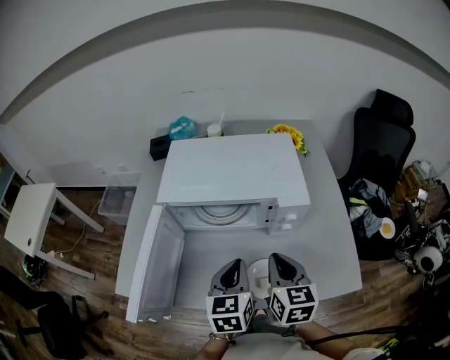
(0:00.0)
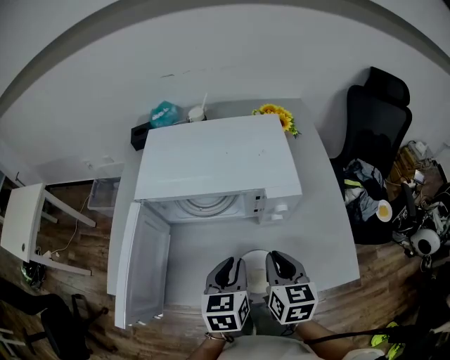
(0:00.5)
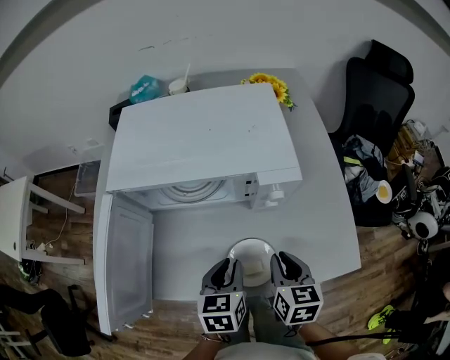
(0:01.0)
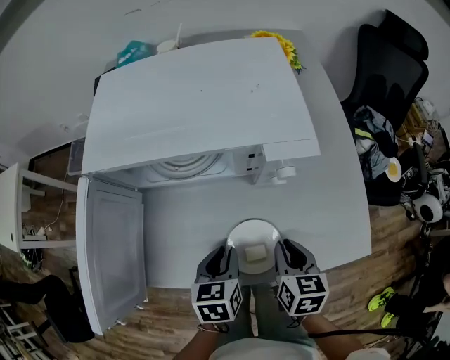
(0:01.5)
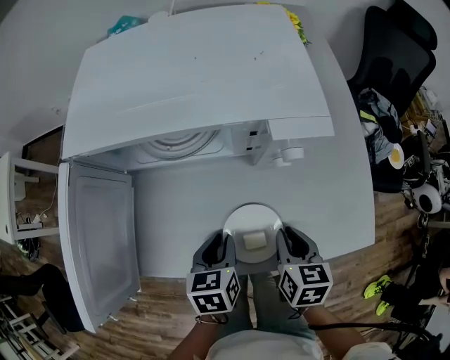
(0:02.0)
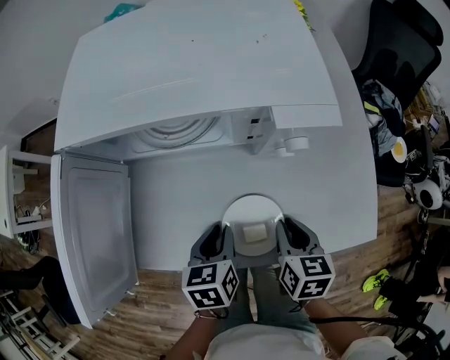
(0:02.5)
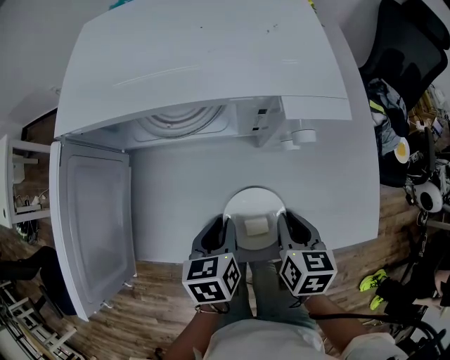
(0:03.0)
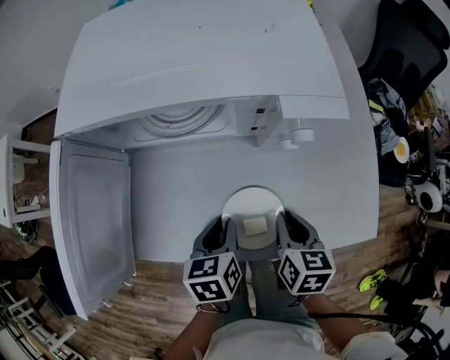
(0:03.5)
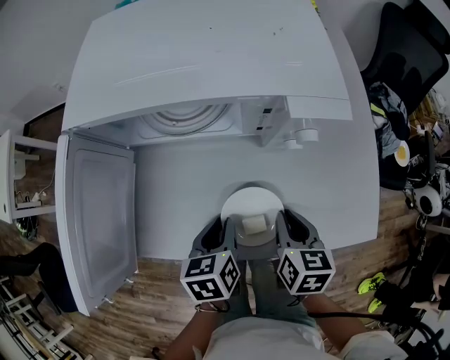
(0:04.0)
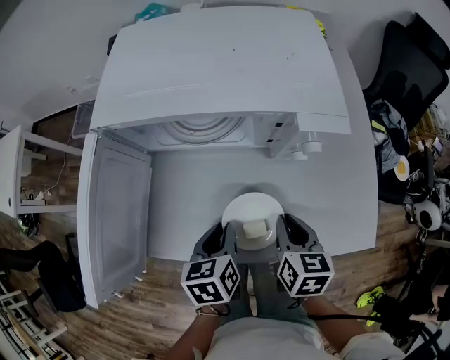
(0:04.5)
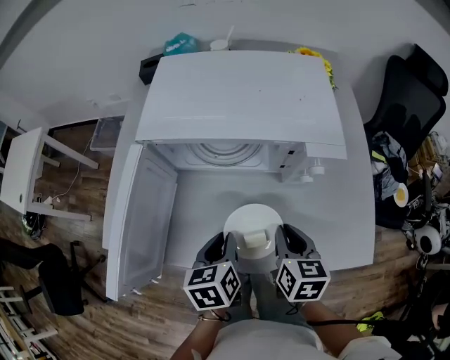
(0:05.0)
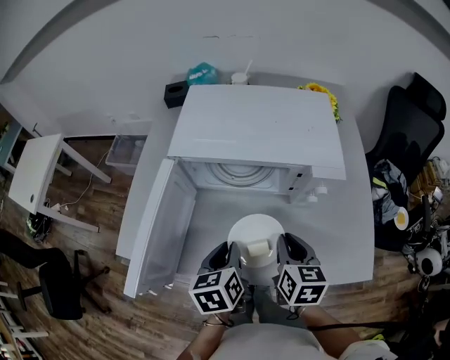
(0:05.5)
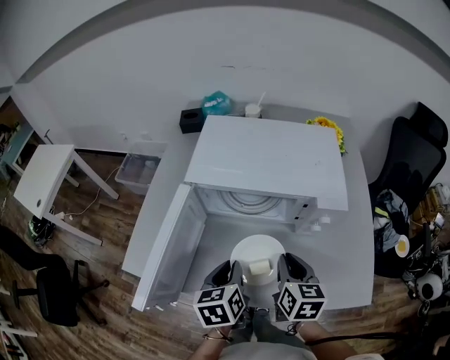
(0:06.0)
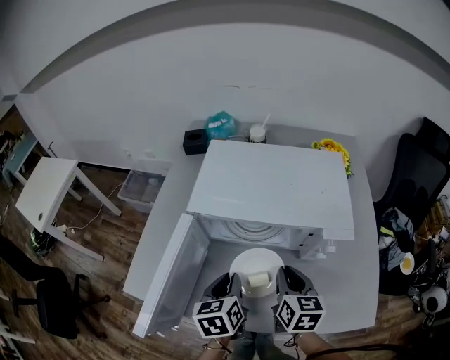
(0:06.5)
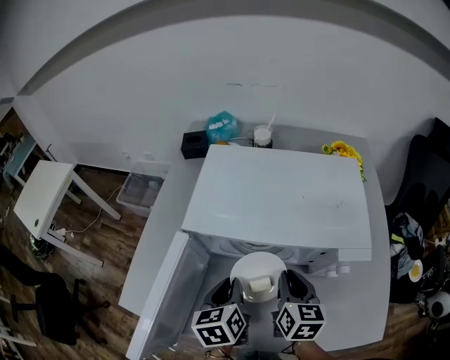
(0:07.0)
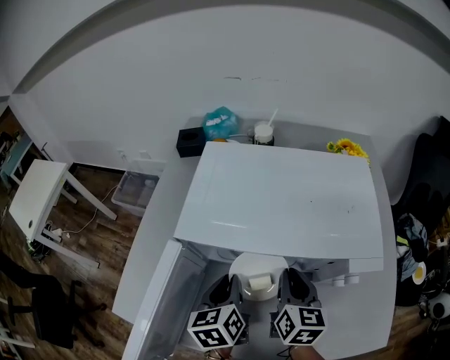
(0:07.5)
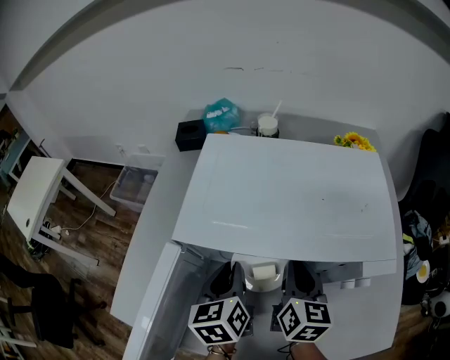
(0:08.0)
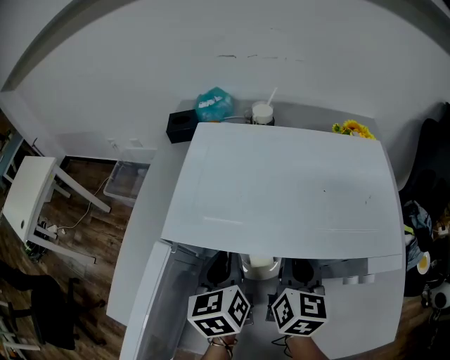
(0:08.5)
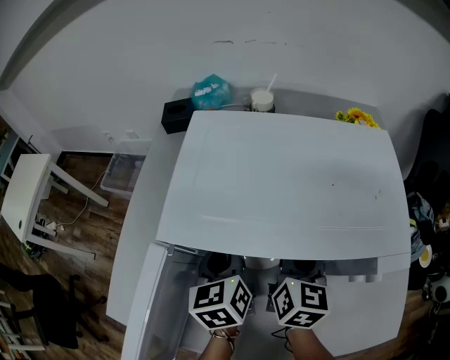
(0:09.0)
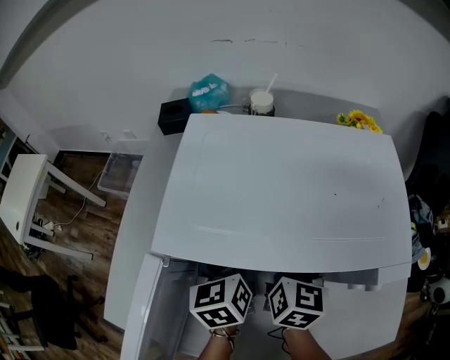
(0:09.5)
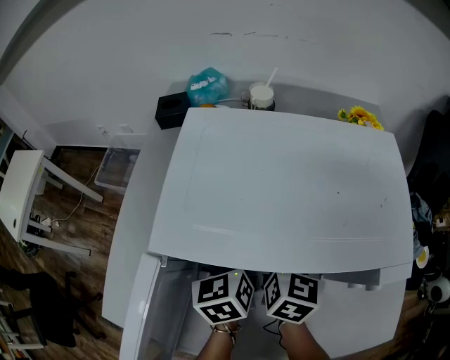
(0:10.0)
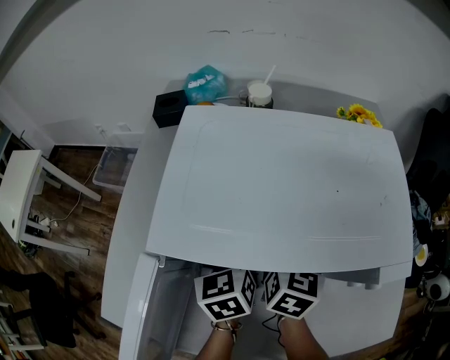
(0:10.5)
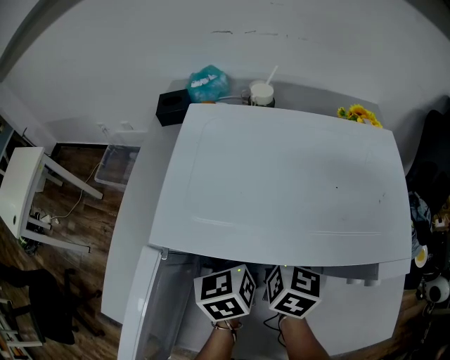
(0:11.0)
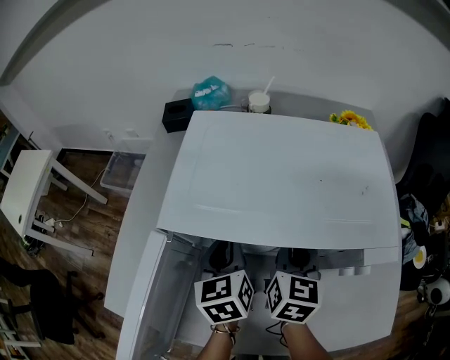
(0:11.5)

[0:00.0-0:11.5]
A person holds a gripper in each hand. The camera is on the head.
0:00.0 to 0:02.0: The left gripper moves downward, roughly 20 cm, and changes its angle by about 30 degrees. The right gripper heads downward and to the right, covering approximately 20 cm, and rotates about 30 degrees.
0:02.0 to 0:04.0: There are only small adjustments of the grippers.
0:04.0 to 0:06.0: Both grippers travel together upward and to the left, approximately 15 cm.
0:06.0 to 0:07.5: The two grippers go roughly 15 cm forward.
0:07.5 to 0:09.5: The two grippers go some 10 cm forward.
0:09.5 to 0:11.5: There are only small adjustments of the grippers.

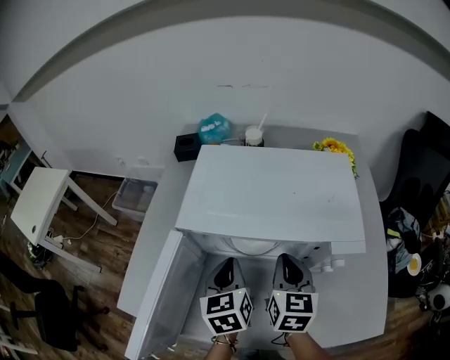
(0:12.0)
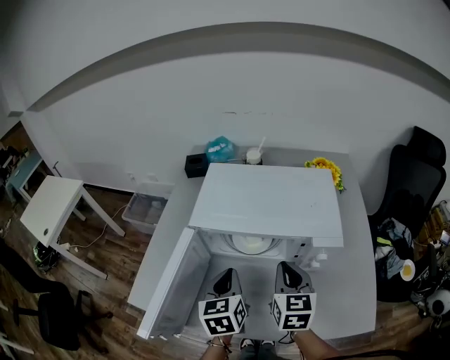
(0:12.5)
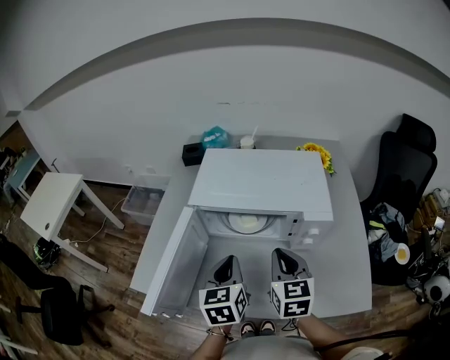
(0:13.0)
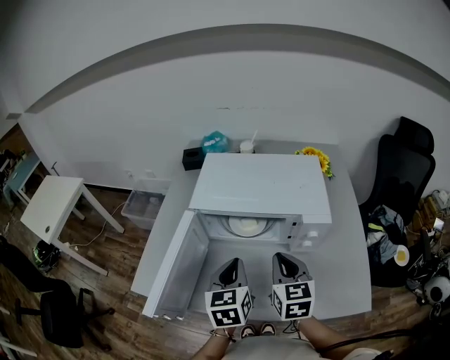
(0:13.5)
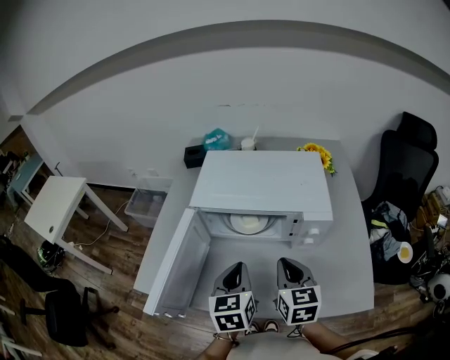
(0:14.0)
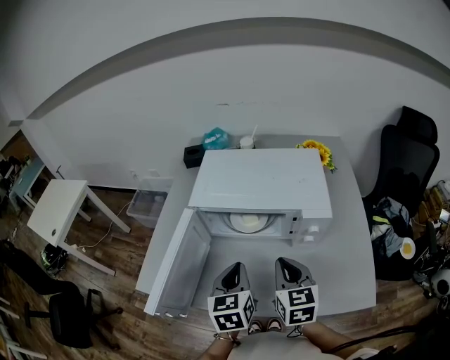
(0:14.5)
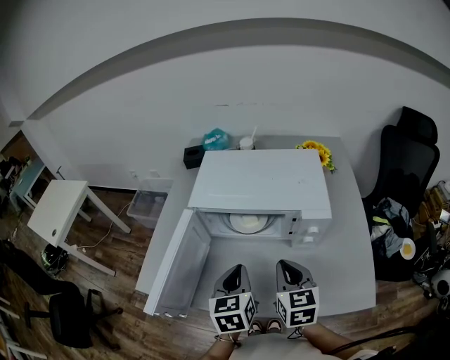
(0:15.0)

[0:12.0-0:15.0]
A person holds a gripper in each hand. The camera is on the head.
0:12.0 to 0:13.5: Both grippers move backward and upward, roughly 15 cm.
0:13.5 to 0:15.0: The grippers stay close to where they were, moving slightly.

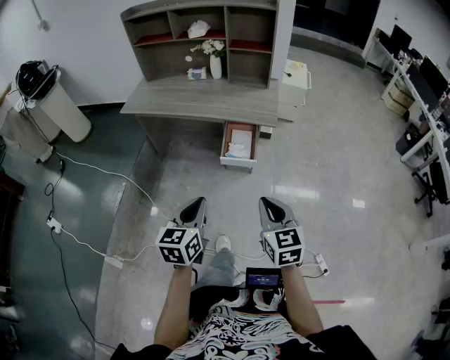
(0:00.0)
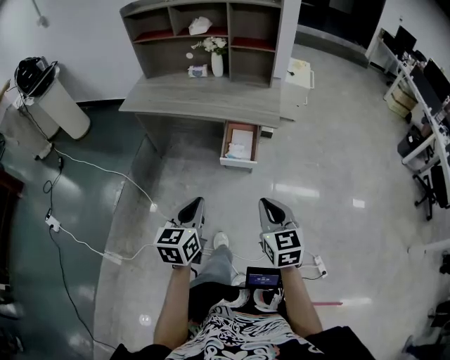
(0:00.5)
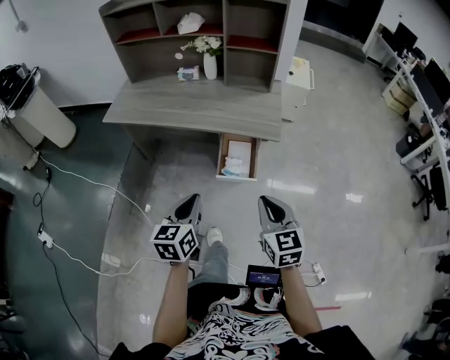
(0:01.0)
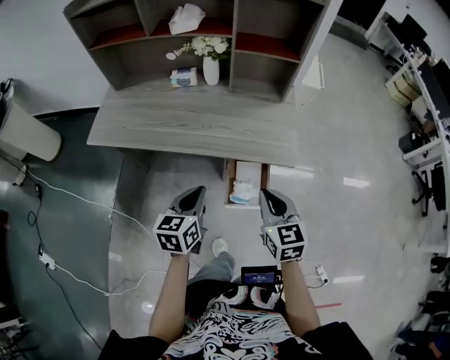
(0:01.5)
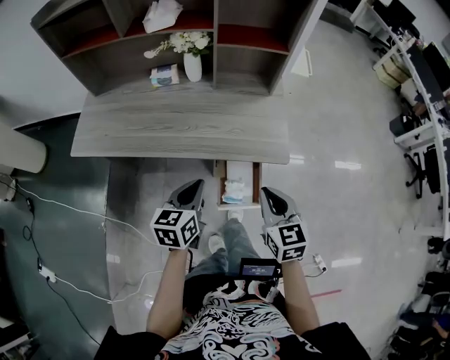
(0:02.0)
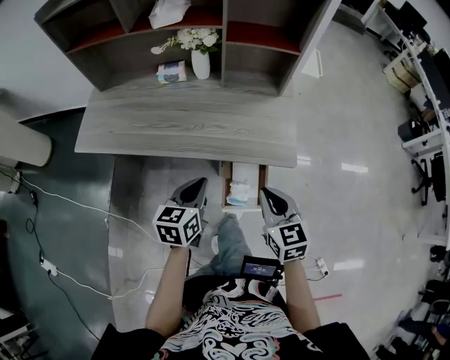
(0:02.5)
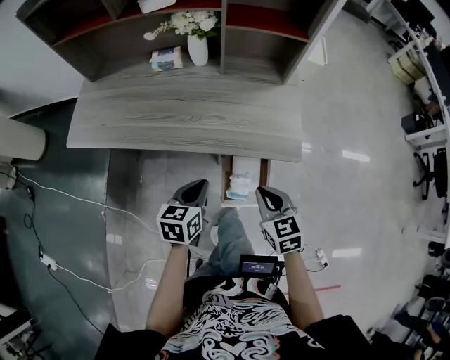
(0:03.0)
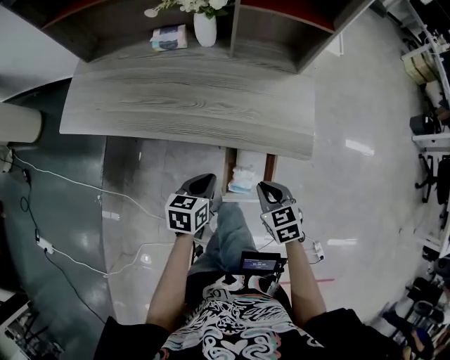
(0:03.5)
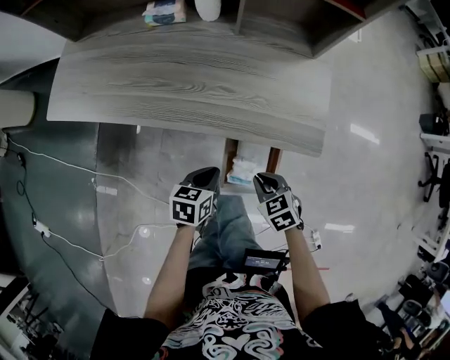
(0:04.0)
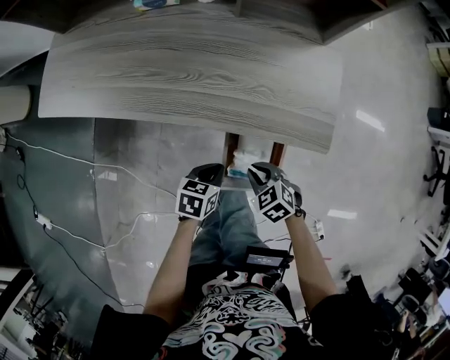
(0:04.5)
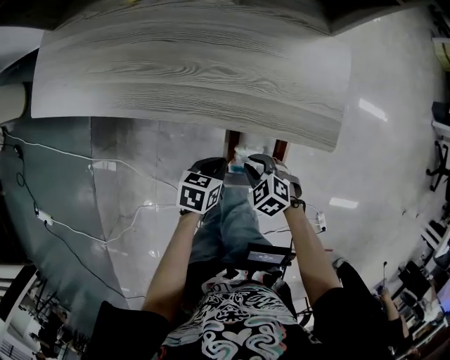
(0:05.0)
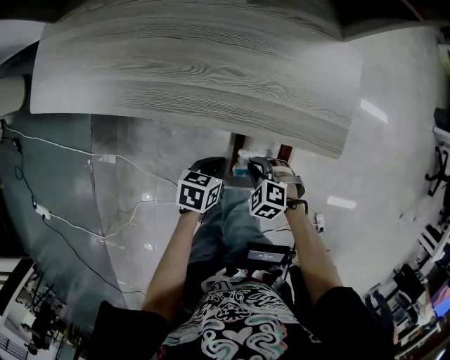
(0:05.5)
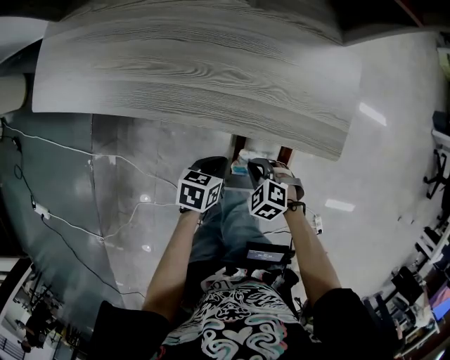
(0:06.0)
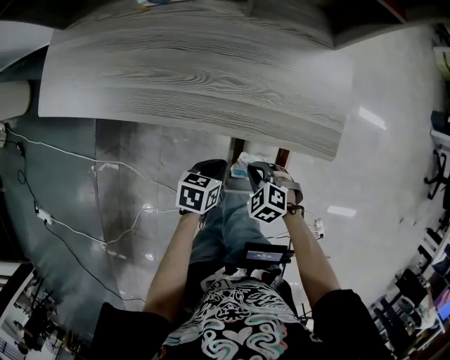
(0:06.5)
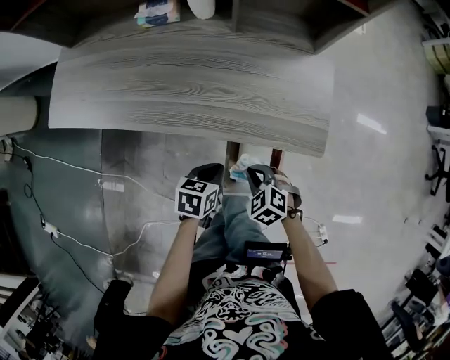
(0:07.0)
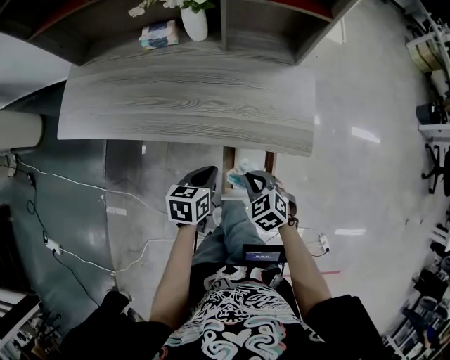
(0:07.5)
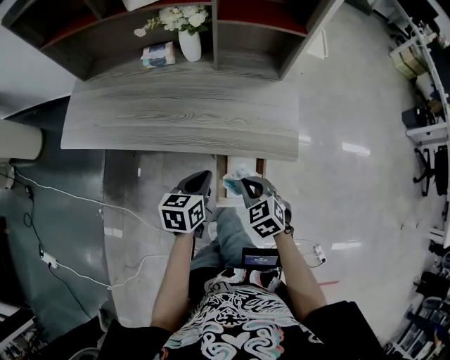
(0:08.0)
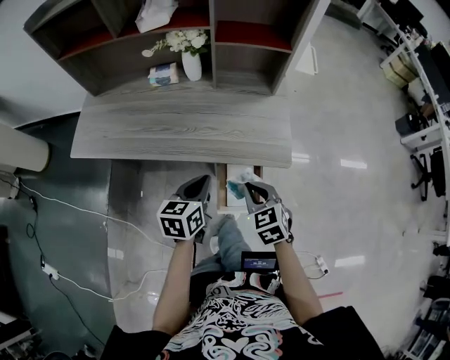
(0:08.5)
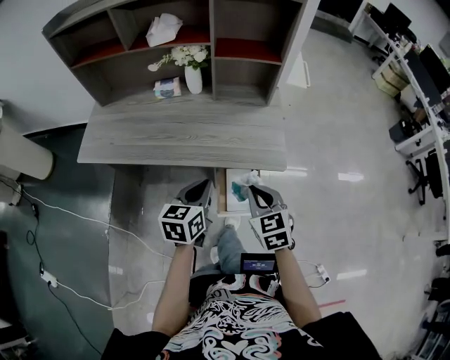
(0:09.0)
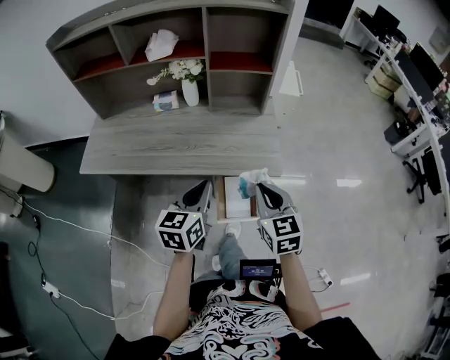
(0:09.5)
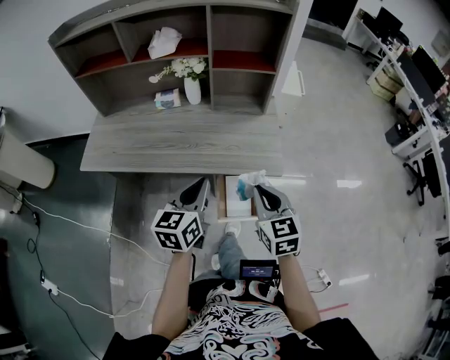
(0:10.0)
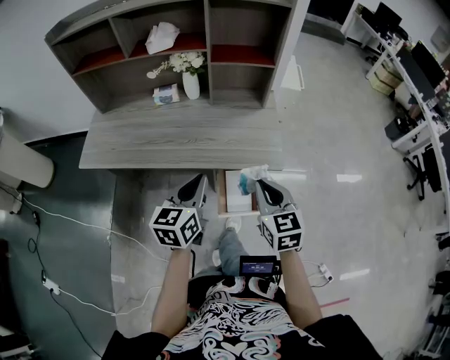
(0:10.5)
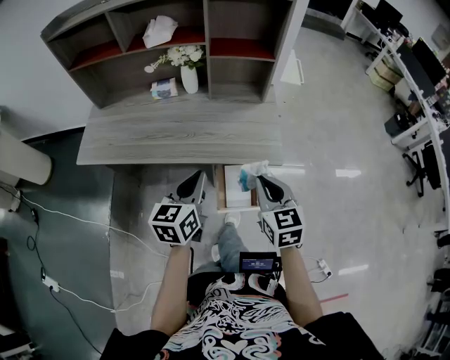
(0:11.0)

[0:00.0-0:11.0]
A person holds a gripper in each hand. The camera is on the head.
0:00.0 to 0:02.0: Both grippers travel together forward, approximately 35 cm.
0:02.0 to 0:03.5: Both grippers travel together downward, some 15 cm. The right gripper turns by about 30 degrees.
0:03.5 to 0:05.5: The grippers both shift downward by some 15 cm. The right gripper twists approximately 40 degrees counterclockwise, seen from behind.
0:05.5 to 0:07.5: The right gripper is displaced upward by approximately 10 cm, and changes its angle by approximately 30 degrees; the left gripper shifts some 10 cm upward and forward.
0:07.5 to 0:09.0: The two grippers go roughly 15 cm upward. The right gripper rotates about 30 degrees. Meanwhile the left gripper rotates about 20 degrees.
0:09.0 to 0:11.0: The right gripper shifts by approximately 5 cm, while the left gripper shifts roughly 5 cm upward.

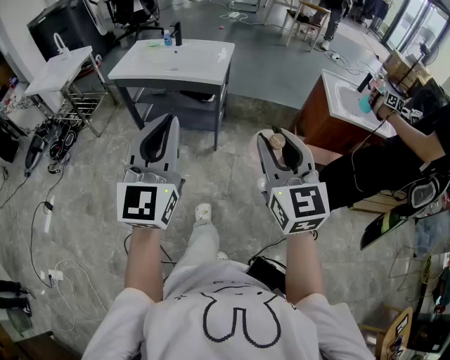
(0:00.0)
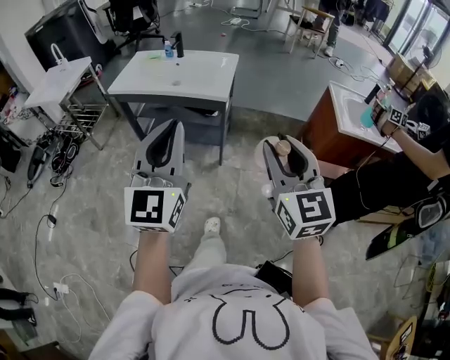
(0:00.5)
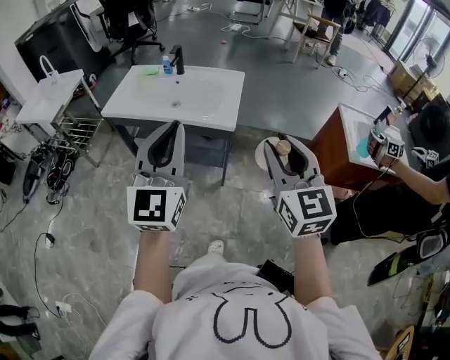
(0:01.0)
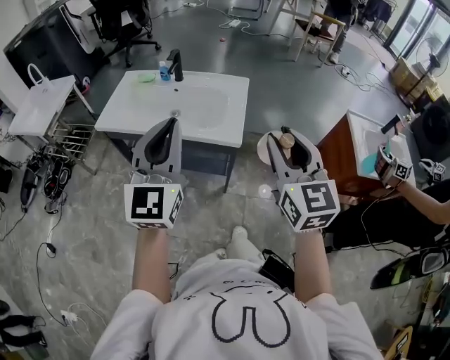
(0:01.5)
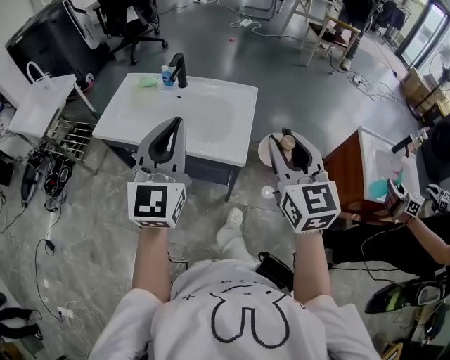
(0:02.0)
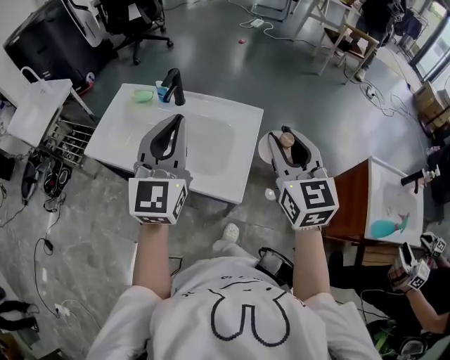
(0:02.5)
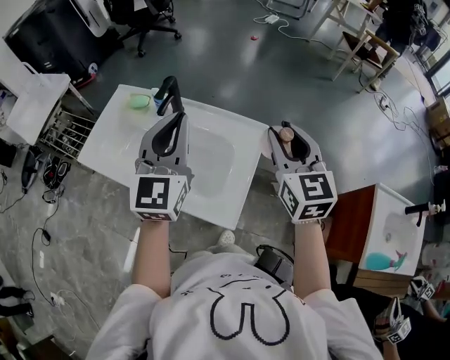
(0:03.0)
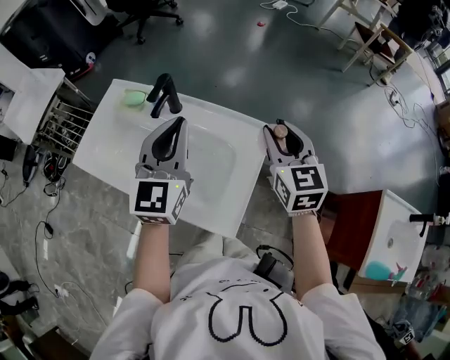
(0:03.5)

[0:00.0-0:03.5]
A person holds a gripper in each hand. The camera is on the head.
0:00.0 to 0:02.0: The pair of grippers is taken forward, about 50 cm.
0:02.0 to 0:03.5: Both grippers move forward, about 35 cm.
